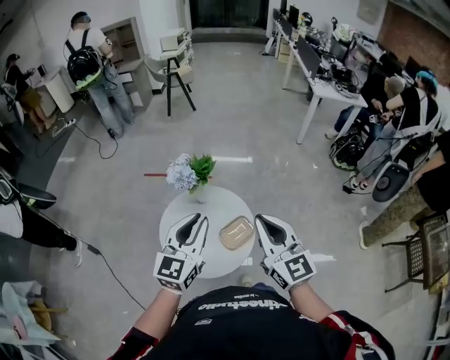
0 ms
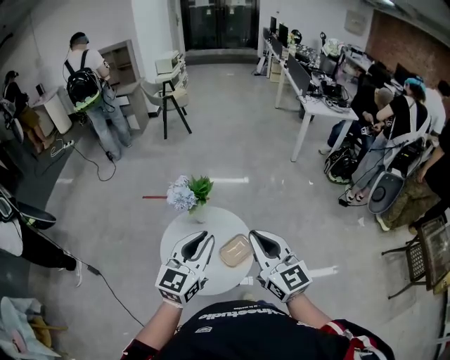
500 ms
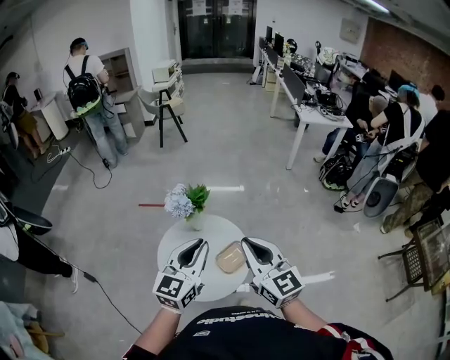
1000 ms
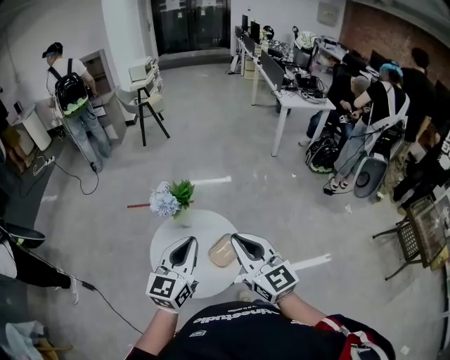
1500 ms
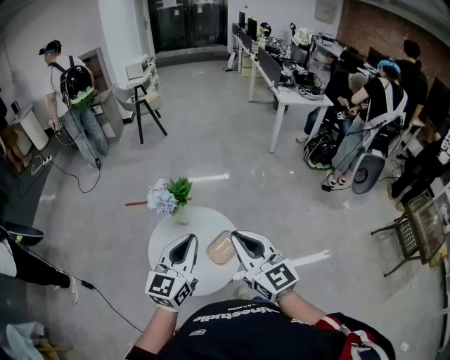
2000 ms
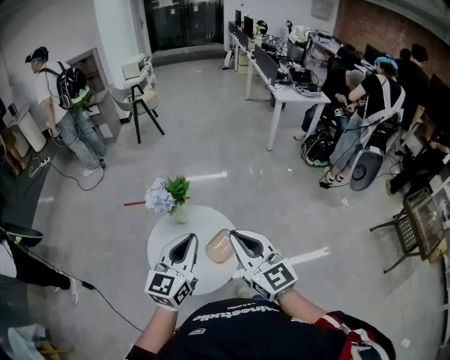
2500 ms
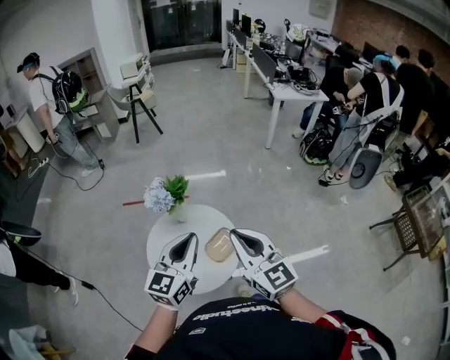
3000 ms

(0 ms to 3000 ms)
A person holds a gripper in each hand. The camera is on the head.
0 ms - 1500 ms: The grippers make only small movements.
1500 ms - 3000 ms: Both grippers stay put.

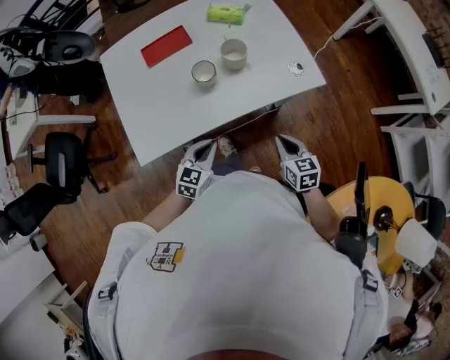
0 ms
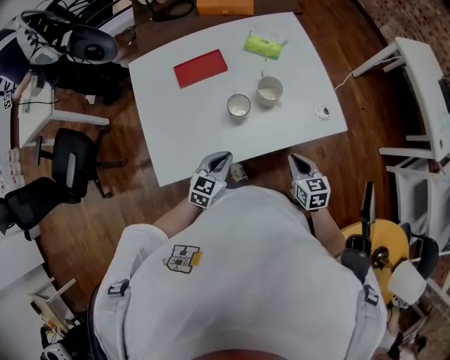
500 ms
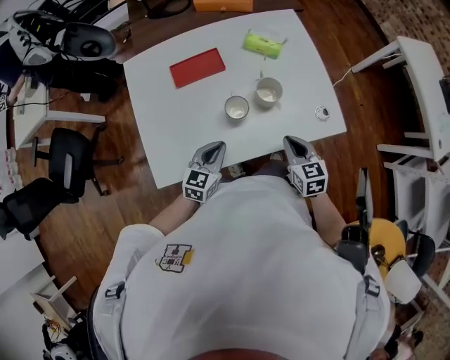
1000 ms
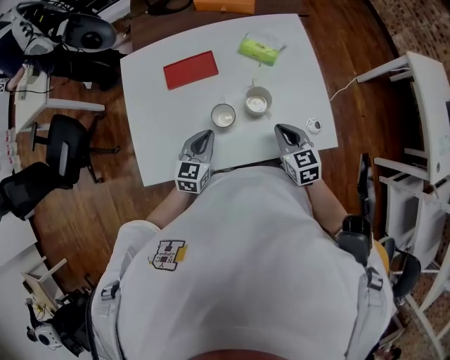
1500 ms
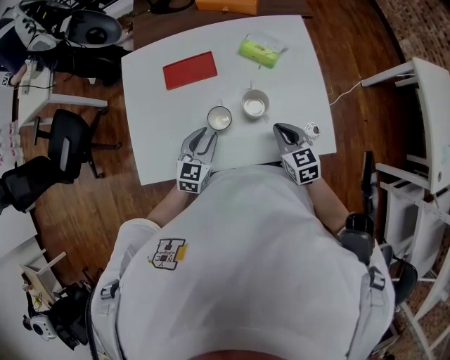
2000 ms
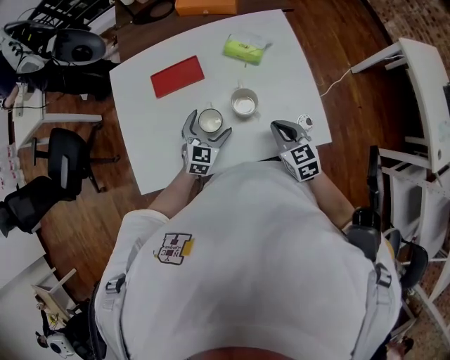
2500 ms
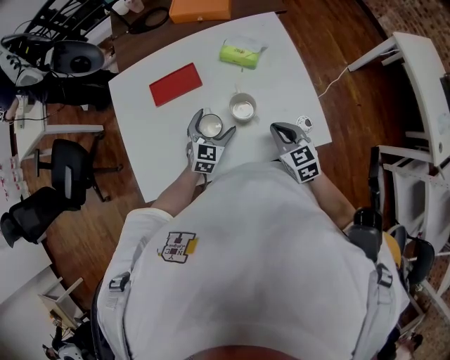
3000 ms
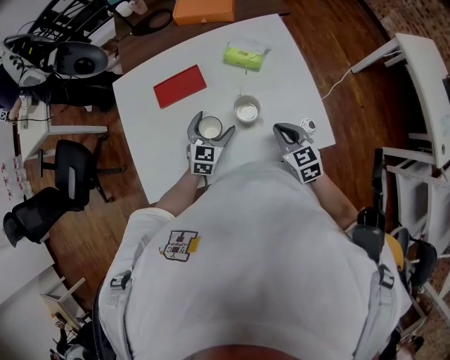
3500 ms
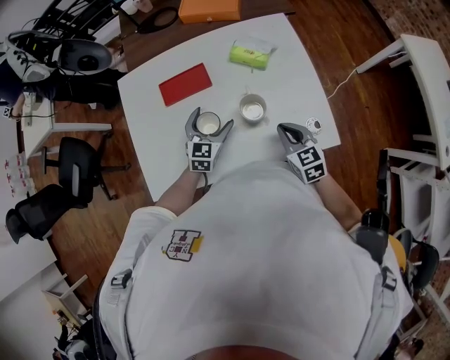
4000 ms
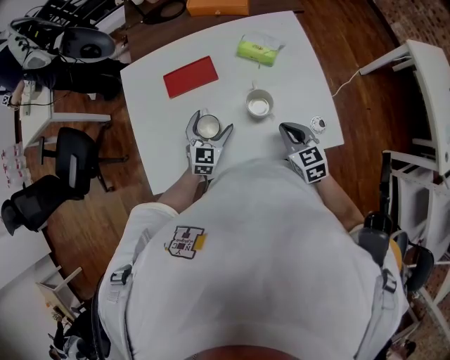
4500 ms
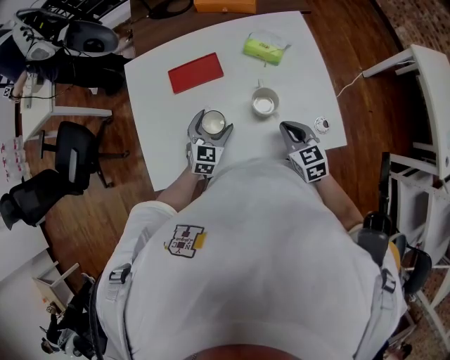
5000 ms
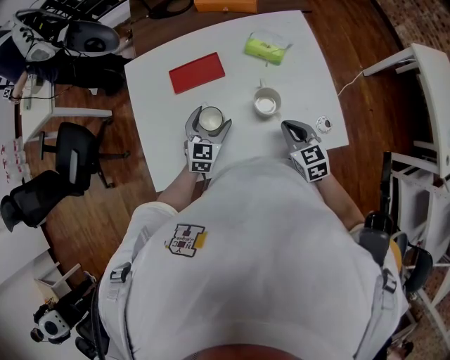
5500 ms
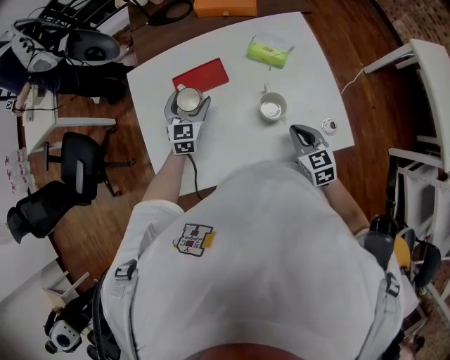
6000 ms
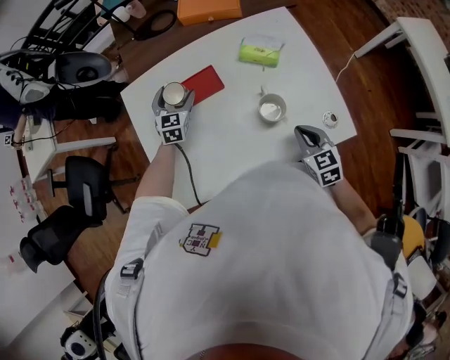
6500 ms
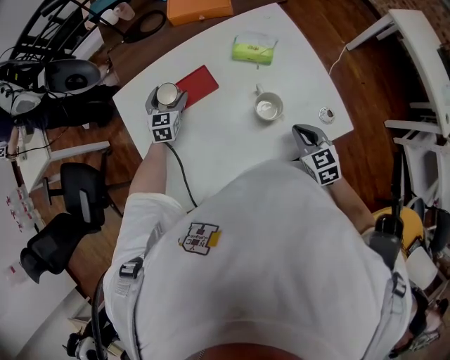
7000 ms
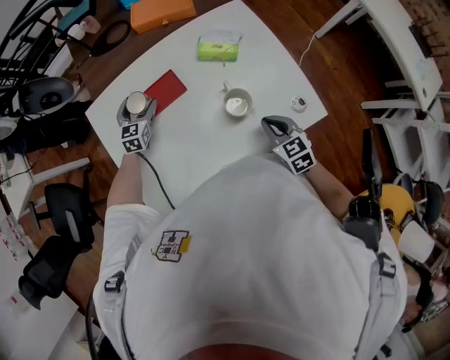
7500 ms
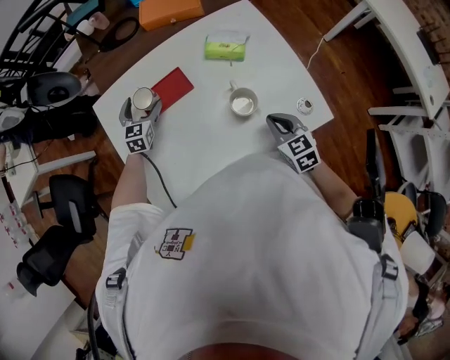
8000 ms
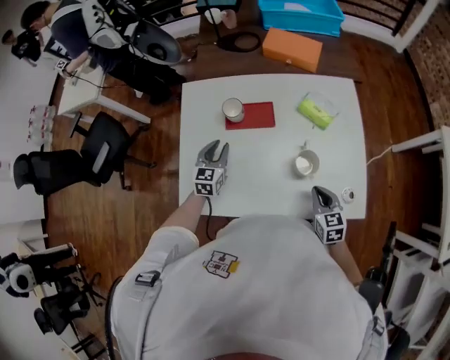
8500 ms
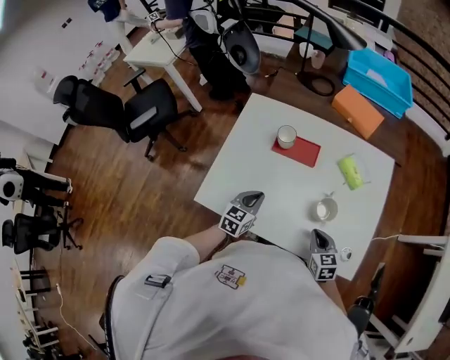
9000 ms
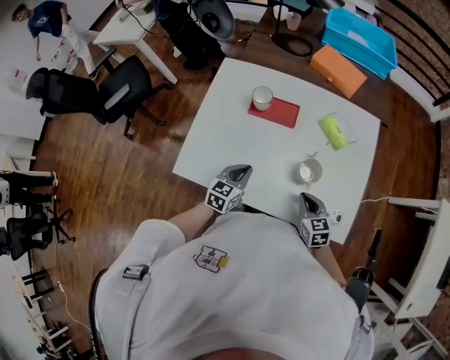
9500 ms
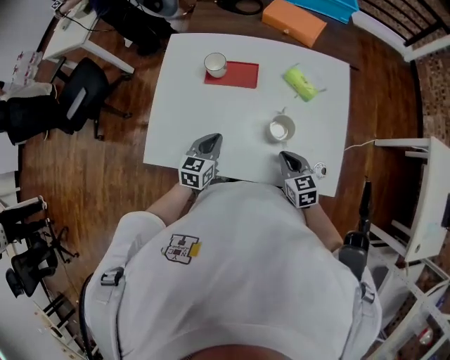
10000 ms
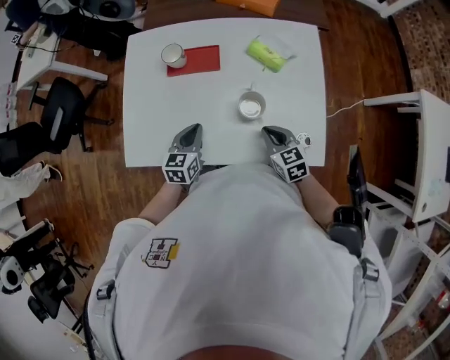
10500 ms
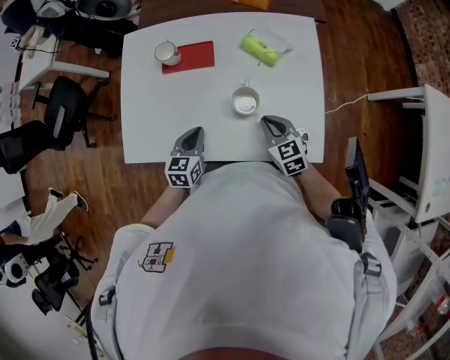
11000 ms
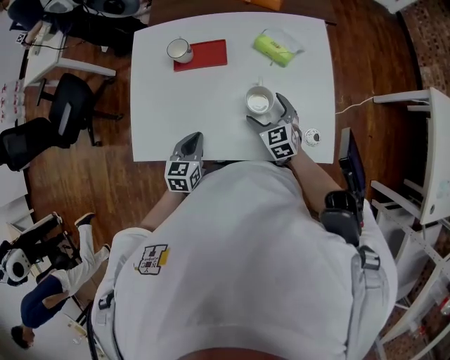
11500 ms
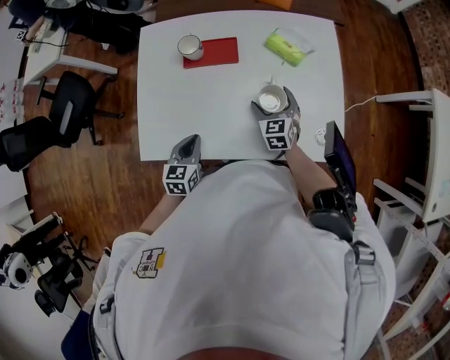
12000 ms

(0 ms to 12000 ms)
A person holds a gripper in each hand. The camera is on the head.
0 ms - 2000 ms: The grippers both shift forward by some 15 cm. The right gripper rotates roughly 20 degrees.
2000 ms - 4000 ms: The left gripper travels forward by roughly 10 cm, and opens its fingers.
4000 ms - 6000 ms: The left gripper moves to the left and forward, roughly 15 cm.
6000 ms - 8000 ms: The left gripper shifts approximately 10 cm forward.
8000 ms - 10000 ms: The right gripper rotates some 20 degrees, while the left gripper heads backward, covering some 25 cm, rotates about 30 degrees, and closes.
10000 ms - 12000 ms: The right gripper is displaced forward by some 10 cm, swivels approximately 20 degrees, and opens up. Meanwhile the left gripper changes place by about 5 cm.

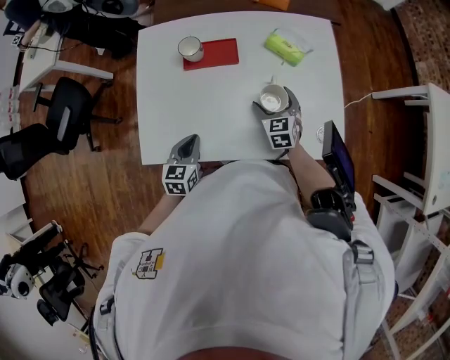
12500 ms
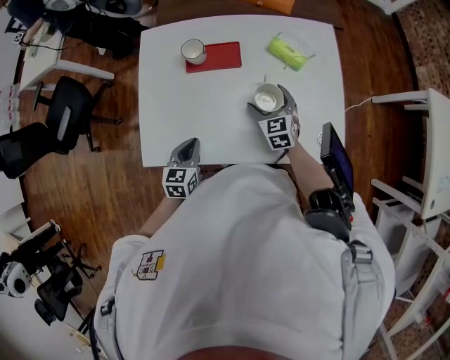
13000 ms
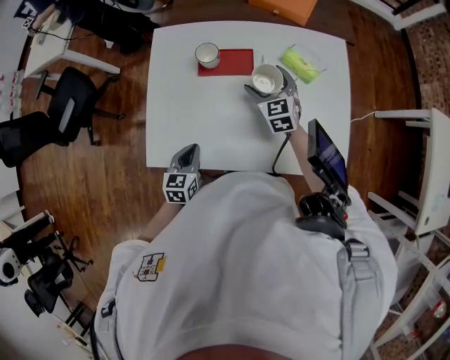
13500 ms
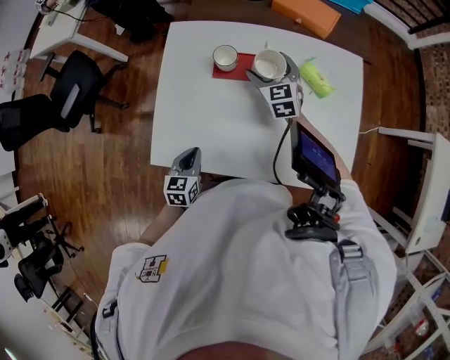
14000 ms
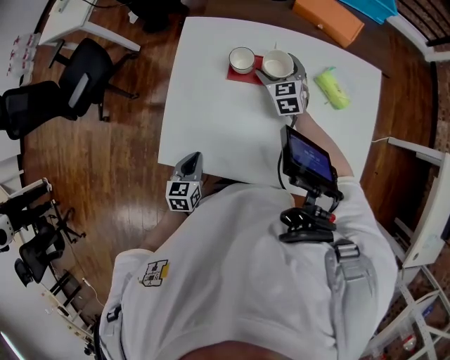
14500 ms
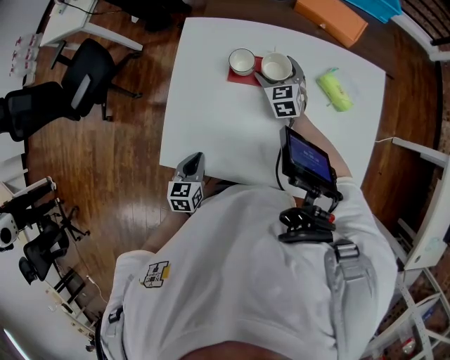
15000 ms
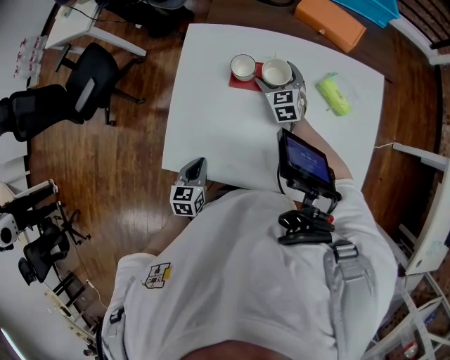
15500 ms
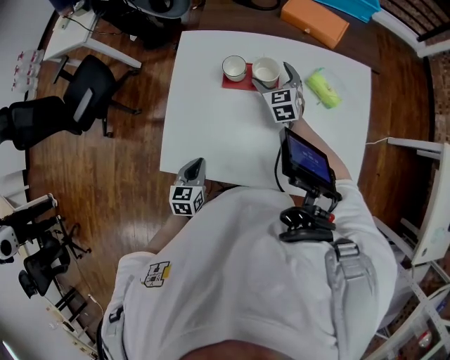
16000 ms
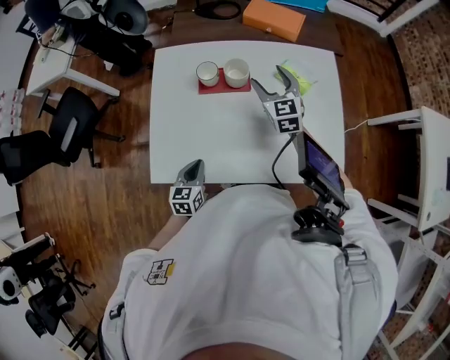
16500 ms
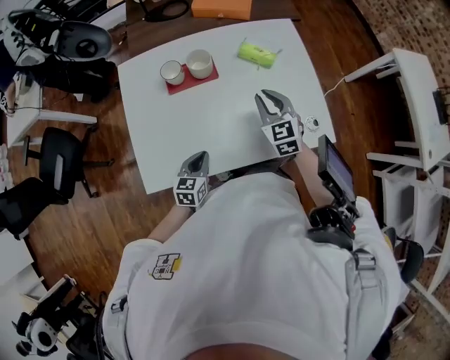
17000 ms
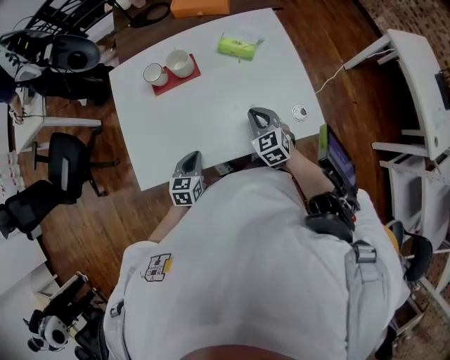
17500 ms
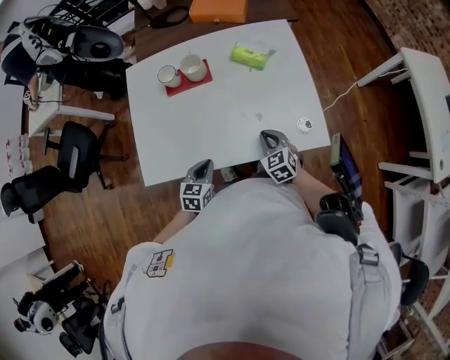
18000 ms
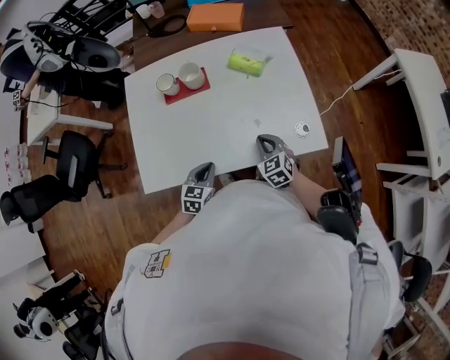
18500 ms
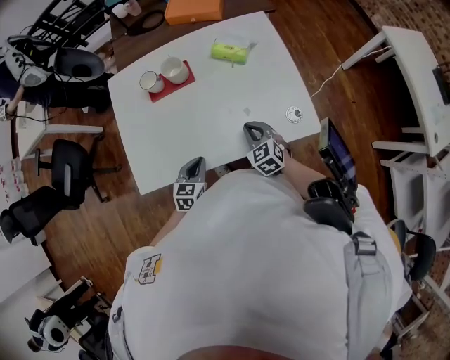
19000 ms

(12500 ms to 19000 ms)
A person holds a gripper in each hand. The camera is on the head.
12500 ms - 14500 ms: The right gripper shifts approximately 25 cm forward and to the left, while the left gripper is displaced to the left by roughly 5 cm.
14500 ms - 17000 ms: The left gripper ends up approximately 10 cm from where it was, and changes its angle by roughly 30 degrees. The right gripper ends up approximately 25 cm from where it was, and closes up.
17000 ms - 19000 ms: The left gripper shifts some 5 cm to the right. The right gripper goes approximately 15 cm backward and downward.

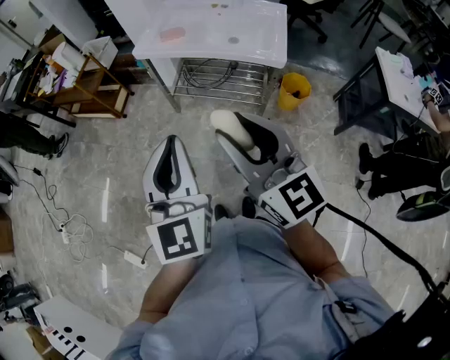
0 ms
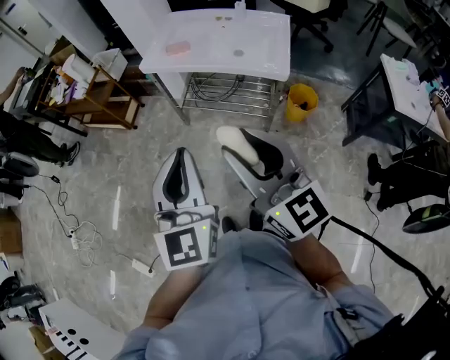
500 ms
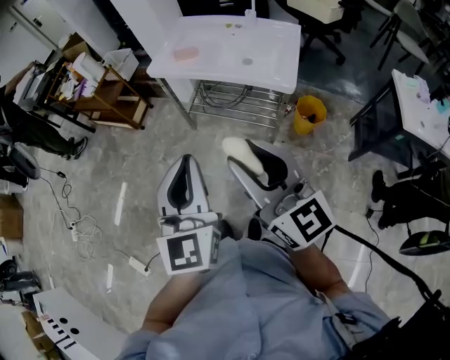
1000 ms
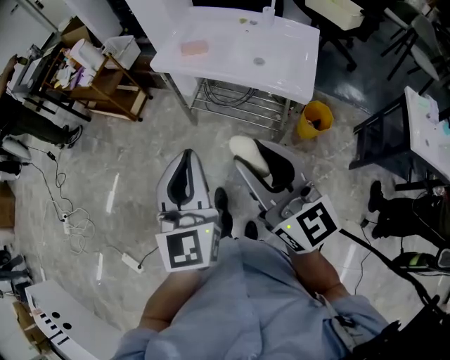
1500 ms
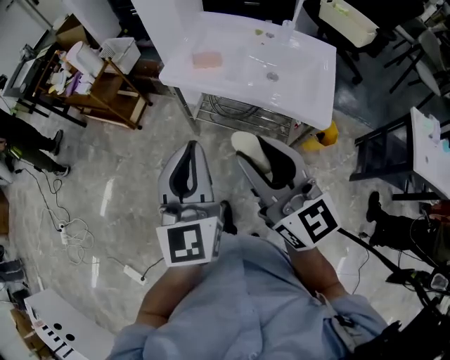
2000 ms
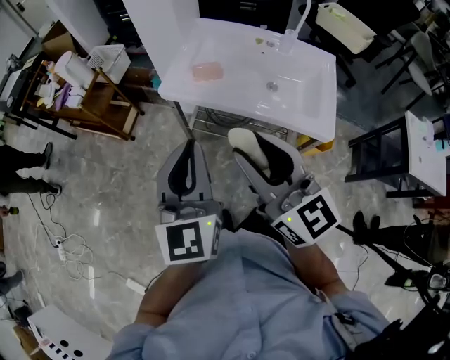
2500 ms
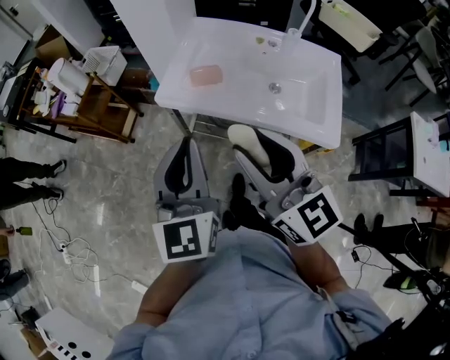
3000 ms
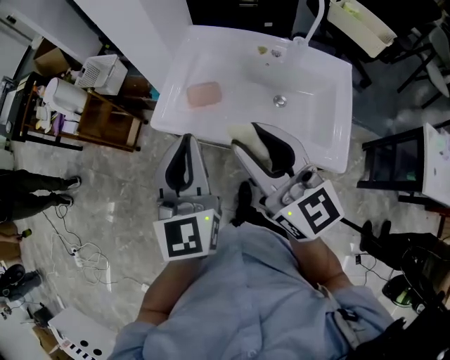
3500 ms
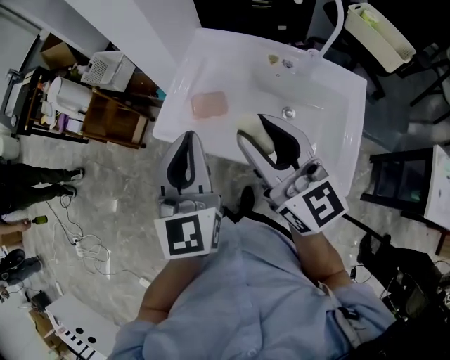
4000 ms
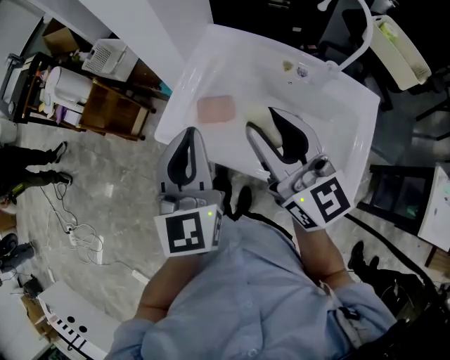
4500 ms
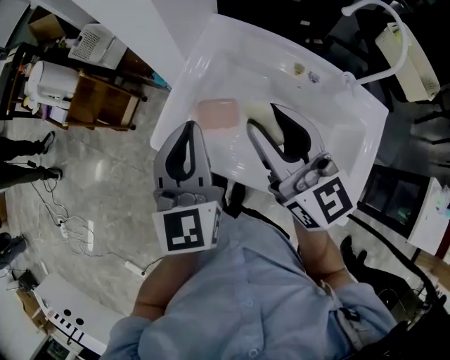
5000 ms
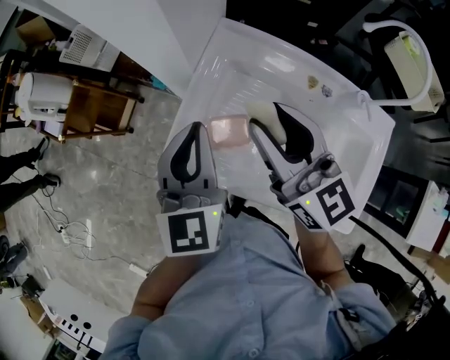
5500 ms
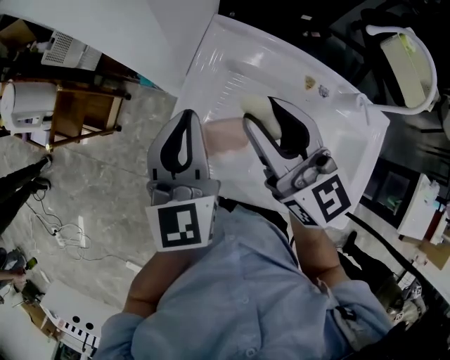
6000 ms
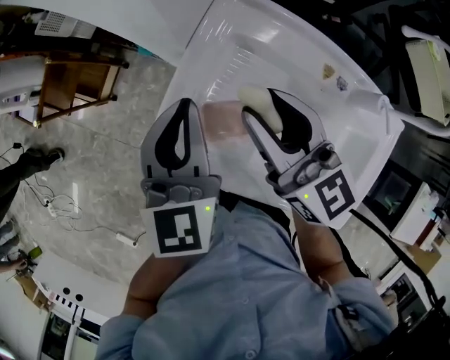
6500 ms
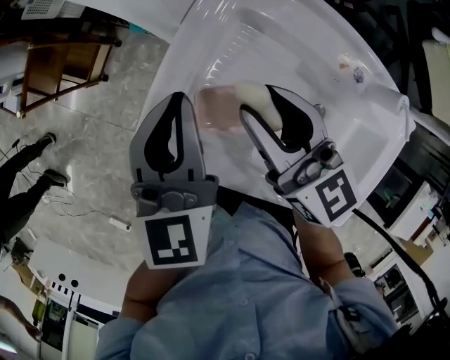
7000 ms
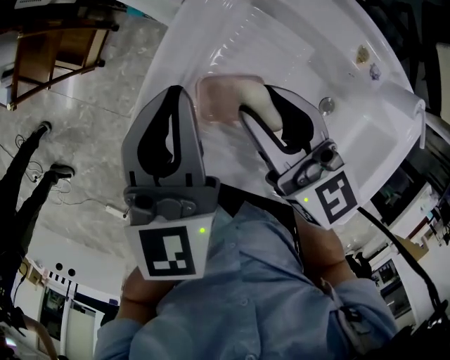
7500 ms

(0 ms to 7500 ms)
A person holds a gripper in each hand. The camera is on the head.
0 ms - 2000 ms: Both grippers travel together forward, about 20 cm.
2000 ms - 4000 ms: Both grippers move forward, approximately 30 cm.
4000 ms - 5500 ms: The right gripper heads forward, covering some 20 cm. Meanwhile the left gripper goes roughly 20 cm forward and downward.
5500 ms - 7500 ms: The left gripper shifts about 10 cm downward; the right gripper is displaced downward by some 15 cm.
